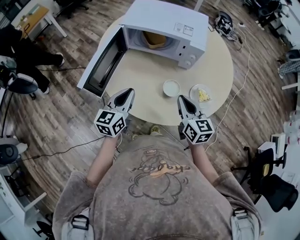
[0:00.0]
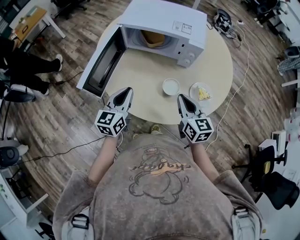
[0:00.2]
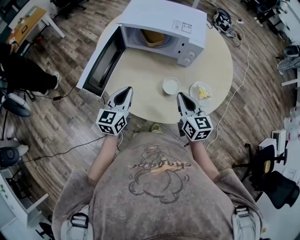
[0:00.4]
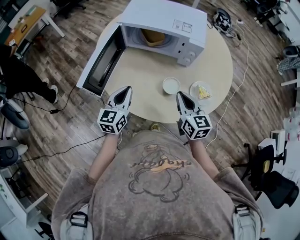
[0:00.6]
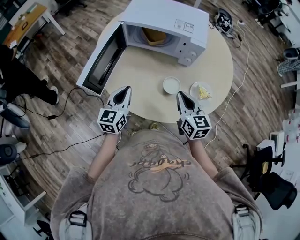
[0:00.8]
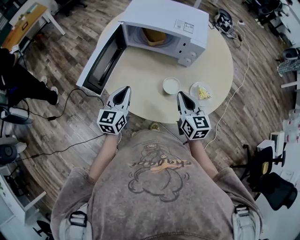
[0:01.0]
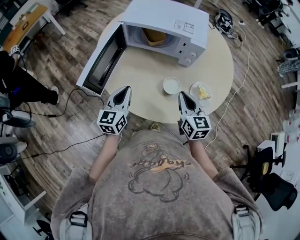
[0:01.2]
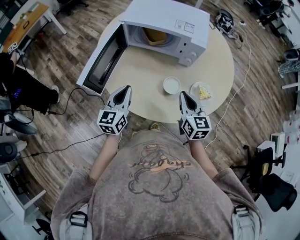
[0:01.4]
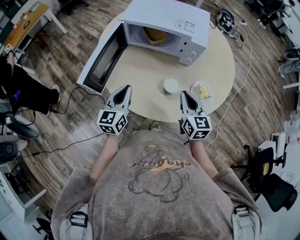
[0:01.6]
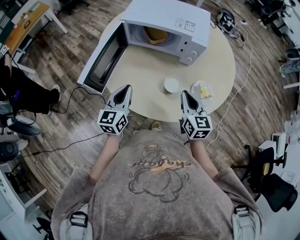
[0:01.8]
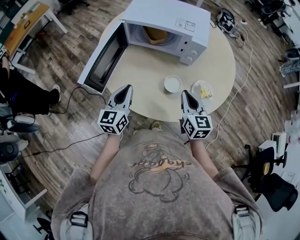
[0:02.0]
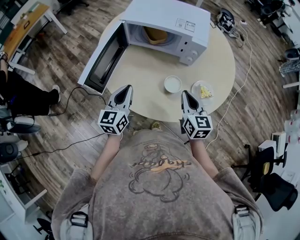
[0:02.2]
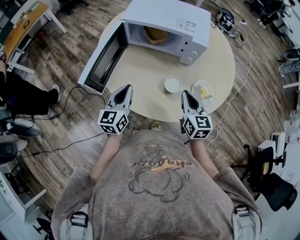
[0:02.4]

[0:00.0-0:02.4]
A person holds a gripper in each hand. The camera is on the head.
0:00.0 to 0:01.2: The grippers make only small movements.
0:01.2 to 0:02.4: The two grippers keep their place.

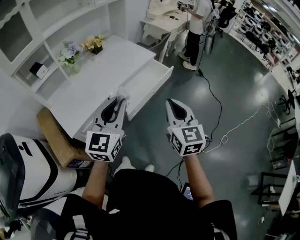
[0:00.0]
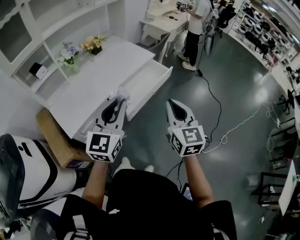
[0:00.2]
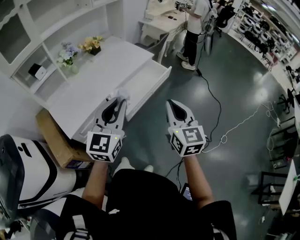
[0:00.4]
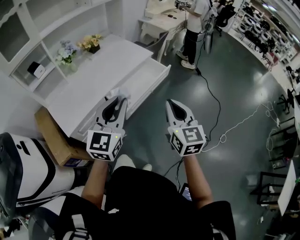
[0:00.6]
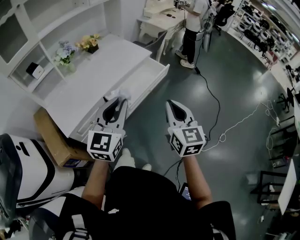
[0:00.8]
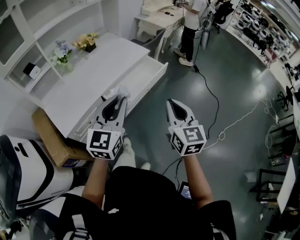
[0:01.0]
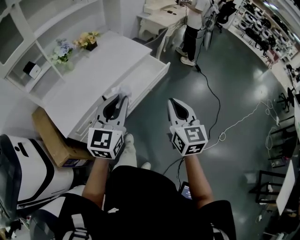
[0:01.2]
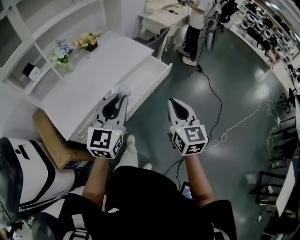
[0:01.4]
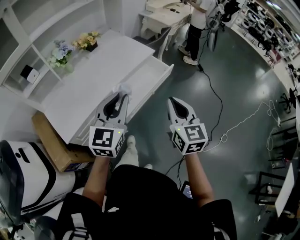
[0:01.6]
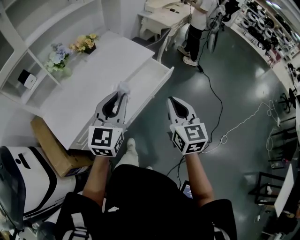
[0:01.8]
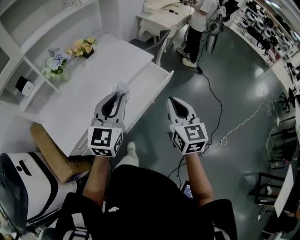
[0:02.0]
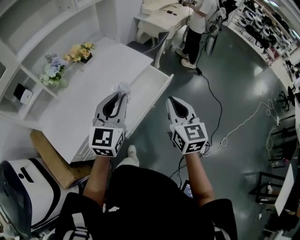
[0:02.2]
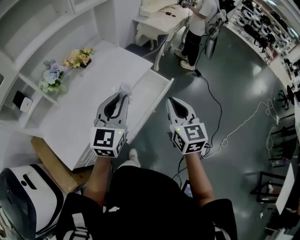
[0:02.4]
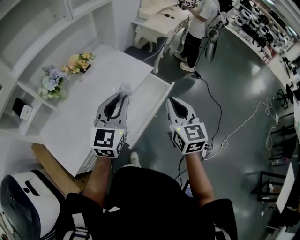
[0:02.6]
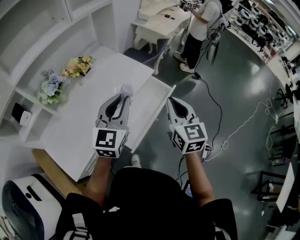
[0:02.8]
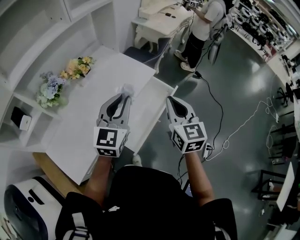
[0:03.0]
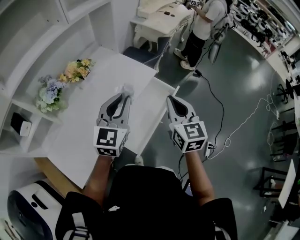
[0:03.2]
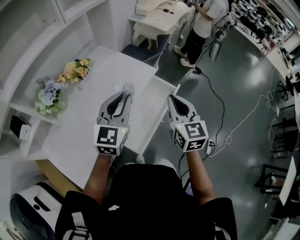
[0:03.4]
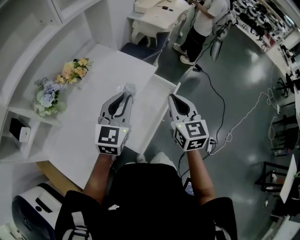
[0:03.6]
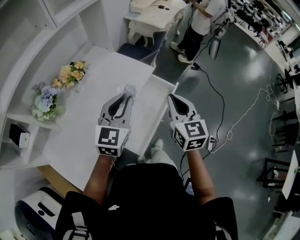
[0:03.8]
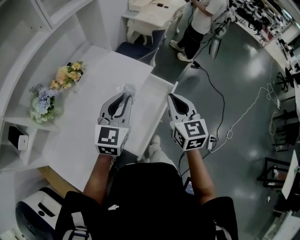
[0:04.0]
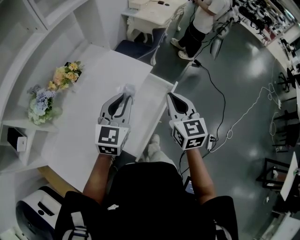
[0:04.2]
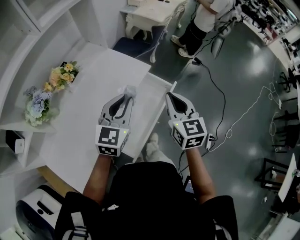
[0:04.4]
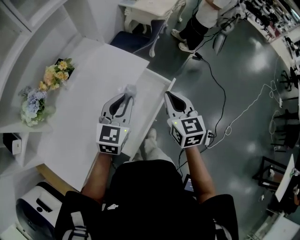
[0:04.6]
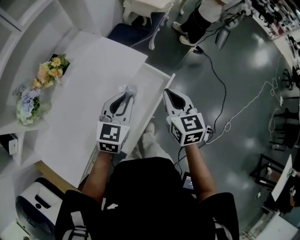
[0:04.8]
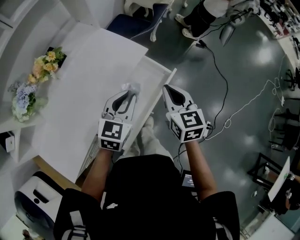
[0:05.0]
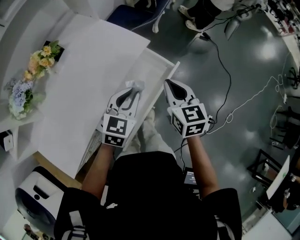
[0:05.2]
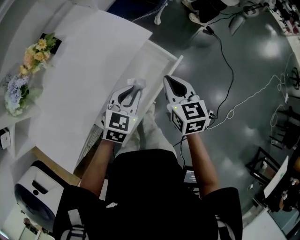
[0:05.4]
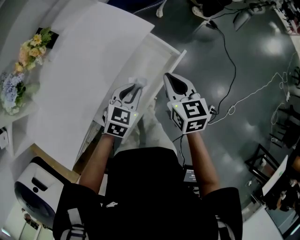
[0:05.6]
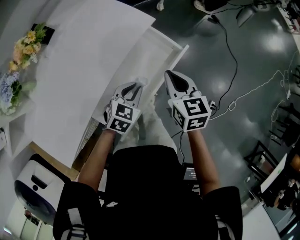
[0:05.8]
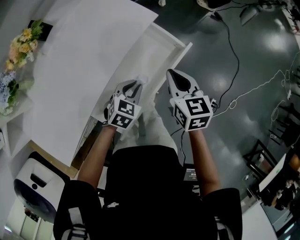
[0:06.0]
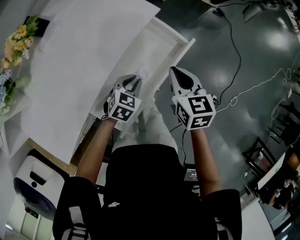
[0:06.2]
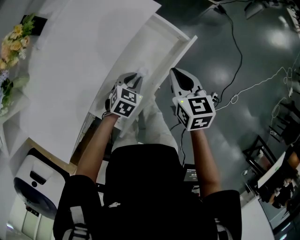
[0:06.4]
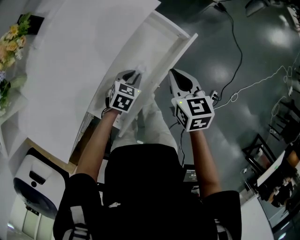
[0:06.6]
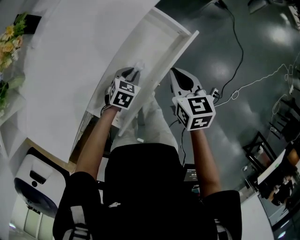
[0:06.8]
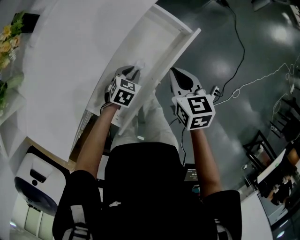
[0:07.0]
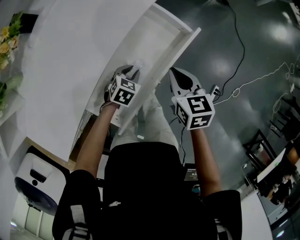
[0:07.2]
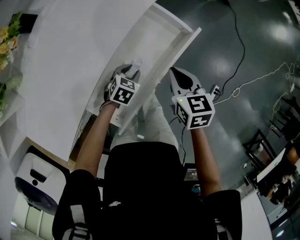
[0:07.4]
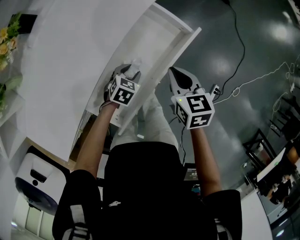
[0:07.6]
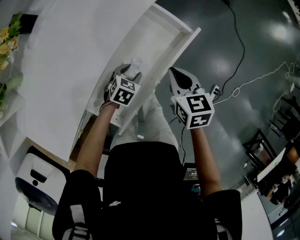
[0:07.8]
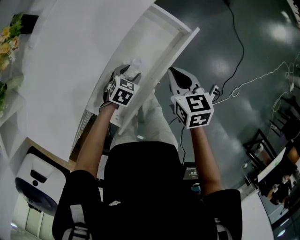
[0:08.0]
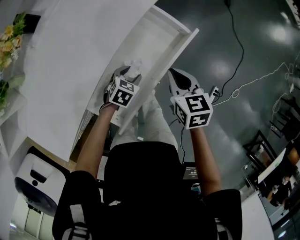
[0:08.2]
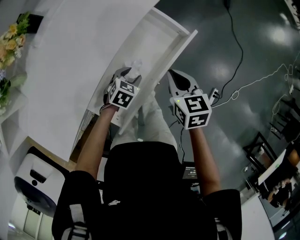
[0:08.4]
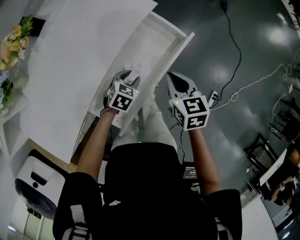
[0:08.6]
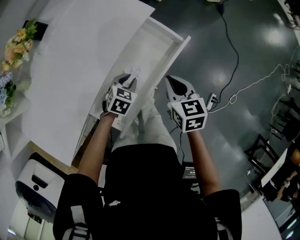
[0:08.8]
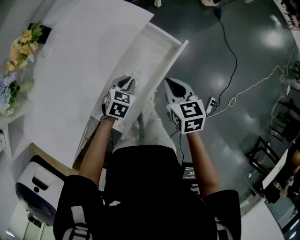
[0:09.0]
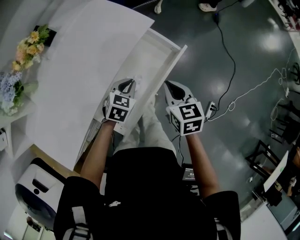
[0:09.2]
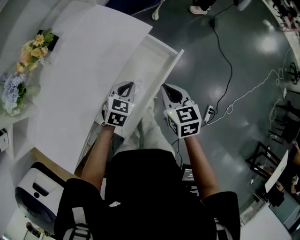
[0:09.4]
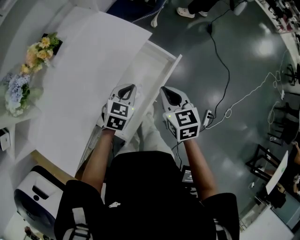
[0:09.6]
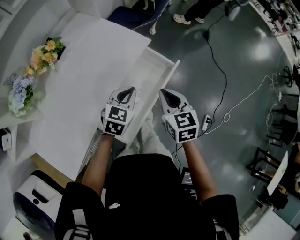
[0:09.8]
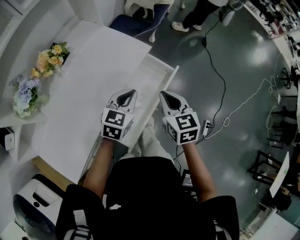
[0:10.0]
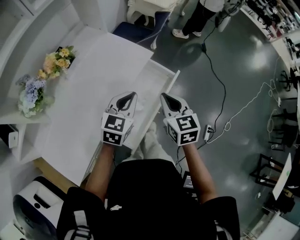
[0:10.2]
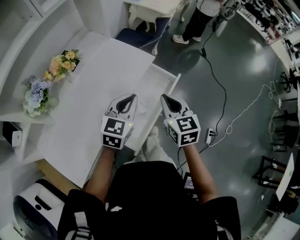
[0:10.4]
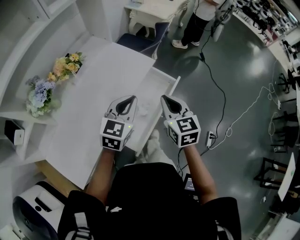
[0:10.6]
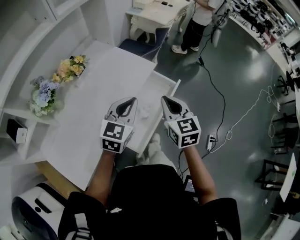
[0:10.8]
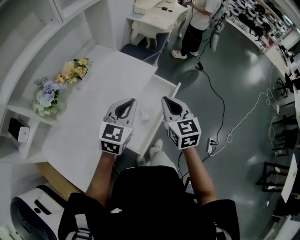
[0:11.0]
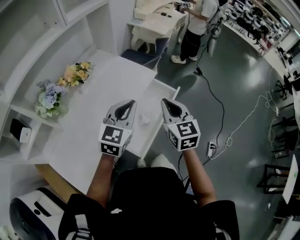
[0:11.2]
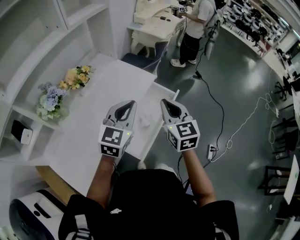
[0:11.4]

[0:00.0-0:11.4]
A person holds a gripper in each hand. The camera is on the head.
0:00.0 to 0:01.4: The left gripper is displaced forward by roughly 5 cm; the right gripper shifts by about 5 cm.
0:01.4 to 0:02.8: Both grippers move forward, approximately 25 cm.
0:02.8 to 0:04.2: The grippers both shift forward and downward by about 15 cm.
0:04.2 to 0:05.6: The right gripper shifts approximately 20 cm downward and forward, and turns by about 20 degrees. The left gripper heads downward, covering some 25 cm, and turns by about 30 degrees.
0:05.6 to 0:07.2: The left gripper travels downward by approximately 20 cm, and rotates some 20 degrees. The right gripper goes some 10 cm downward.
0:07.2 to 0:08.6: The grippers stay close to where they were, moving slightly.
0:08.6 to 0:10.0: The left gripper is displaced upward by some 25 cm, rotates about 30 degrees, and closes. Meanwhile the right gripper heads upward, covering about 15 cm.
0:10.0 to 0:11.4: Both grippers travel together upward and backward, approximately 15 cm. The left gripper turns by some 20 degrees.

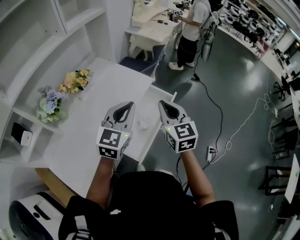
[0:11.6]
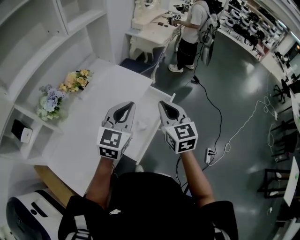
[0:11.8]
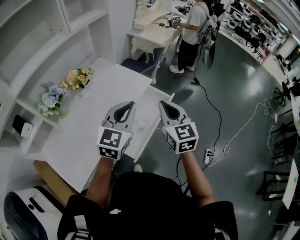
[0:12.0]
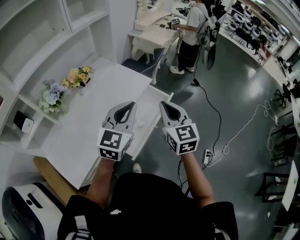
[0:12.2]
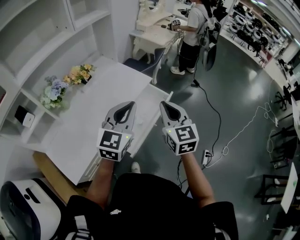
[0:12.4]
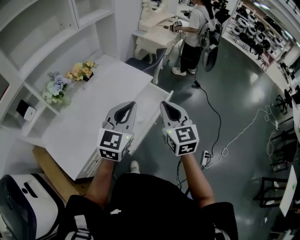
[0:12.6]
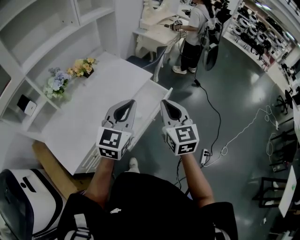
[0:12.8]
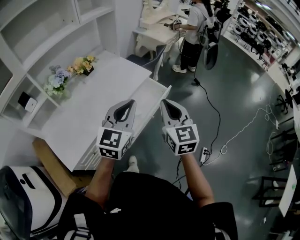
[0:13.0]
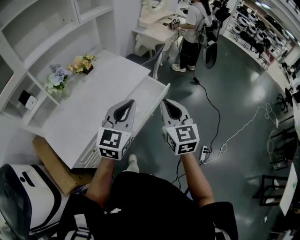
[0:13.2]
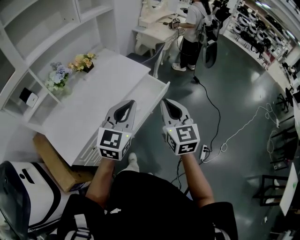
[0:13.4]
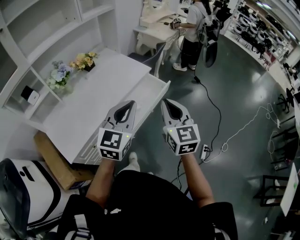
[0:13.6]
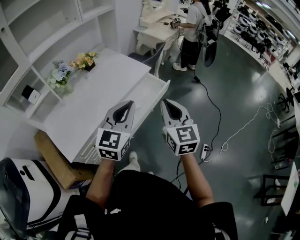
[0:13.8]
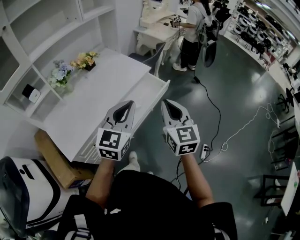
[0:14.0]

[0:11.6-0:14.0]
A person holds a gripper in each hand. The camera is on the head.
0:11.6 to 0:12.8: The right gripper shifts approximately 15 cm backward, to the right and upward. The left gripper heads backward and to the right, covering approximately 15 cm.
0:12.8 to 0:14.0: Both grippers move backward, roughly 10 cm.

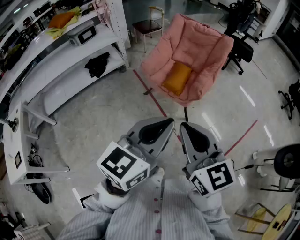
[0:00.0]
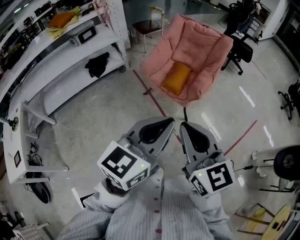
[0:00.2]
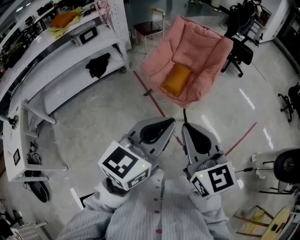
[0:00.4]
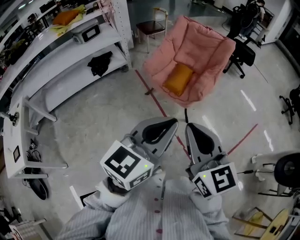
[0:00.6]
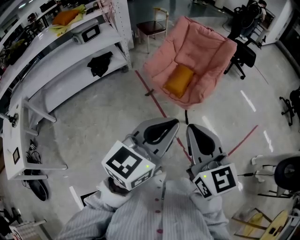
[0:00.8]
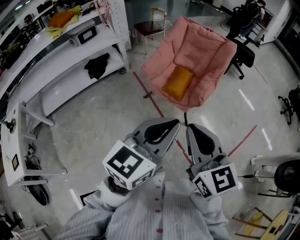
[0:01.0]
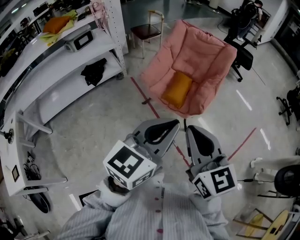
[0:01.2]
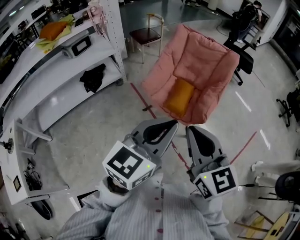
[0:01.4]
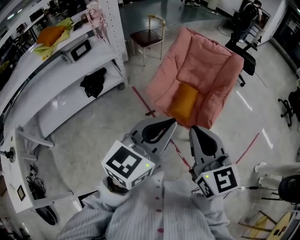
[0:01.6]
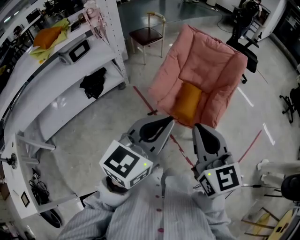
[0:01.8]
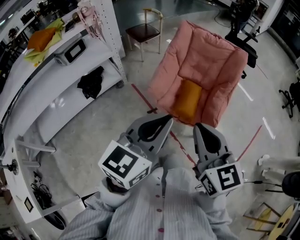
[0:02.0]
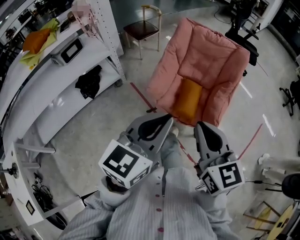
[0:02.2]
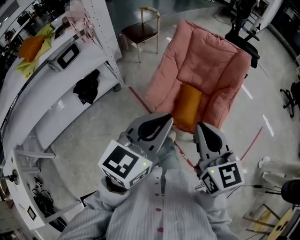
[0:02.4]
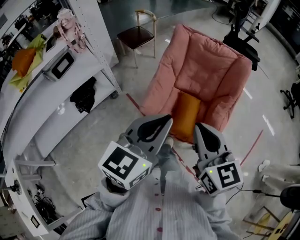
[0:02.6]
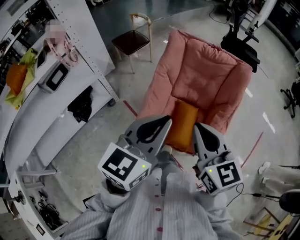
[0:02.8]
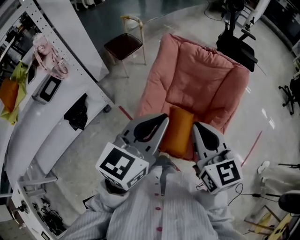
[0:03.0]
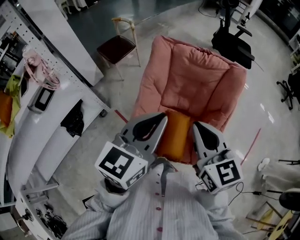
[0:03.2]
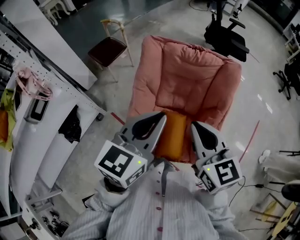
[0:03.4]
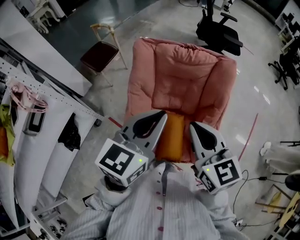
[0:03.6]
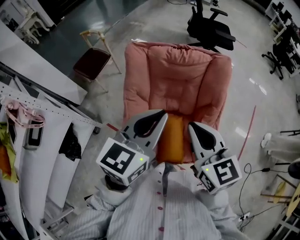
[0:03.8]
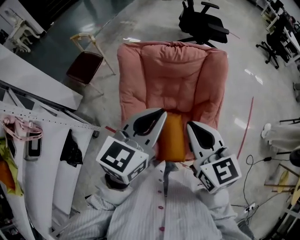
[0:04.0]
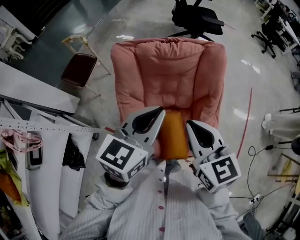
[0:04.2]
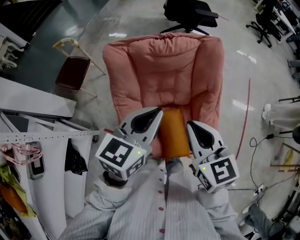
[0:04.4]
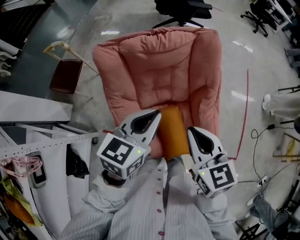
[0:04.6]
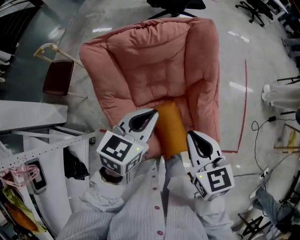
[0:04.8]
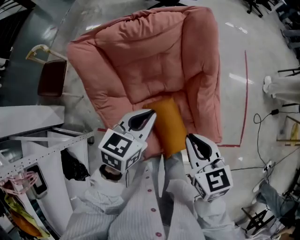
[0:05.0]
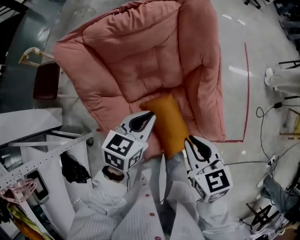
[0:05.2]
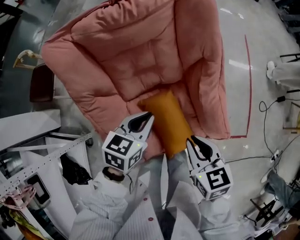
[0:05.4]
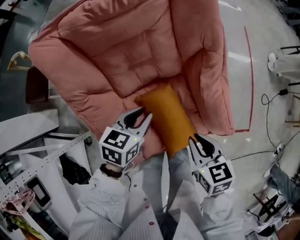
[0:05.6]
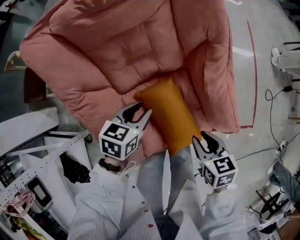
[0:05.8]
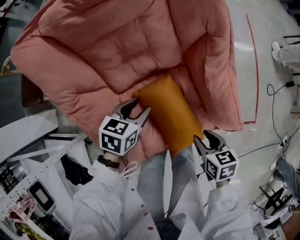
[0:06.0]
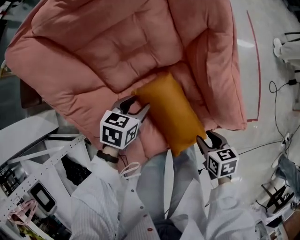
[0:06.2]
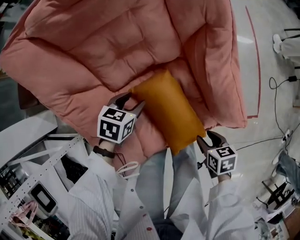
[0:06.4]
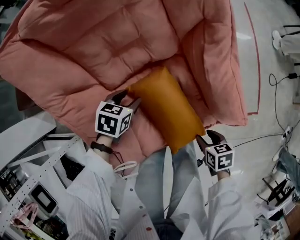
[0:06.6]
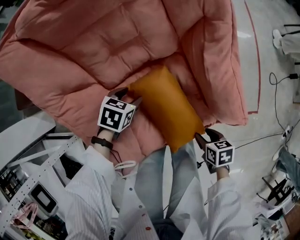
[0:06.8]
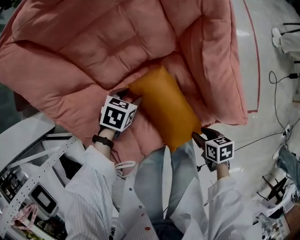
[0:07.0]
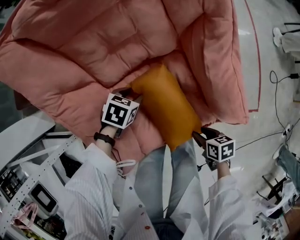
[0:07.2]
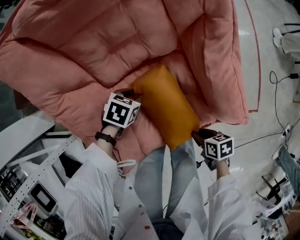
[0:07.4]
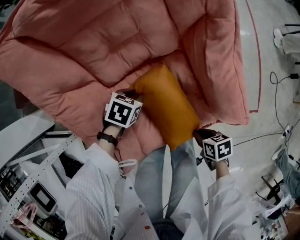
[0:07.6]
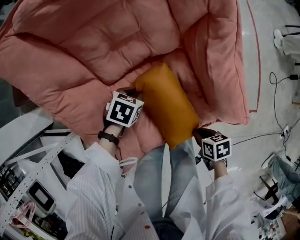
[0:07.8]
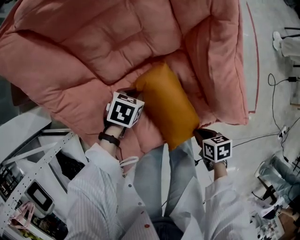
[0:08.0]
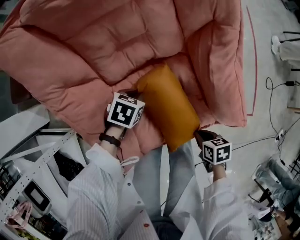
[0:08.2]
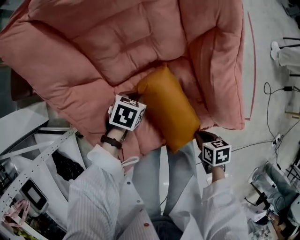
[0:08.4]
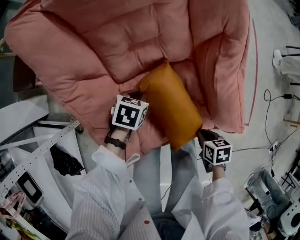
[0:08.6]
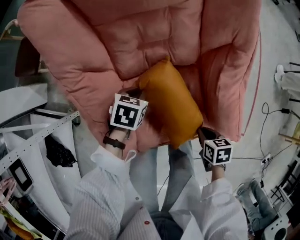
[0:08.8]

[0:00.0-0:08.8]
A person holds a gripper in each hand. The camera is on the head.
0:00.0 to 0:01.4: The grippers both shift forward by about 15 cm.
0:01.4 to 0:03.0: Both grippers are carried forward, roughly 40 cm.
0:03.0 to 0:04.4: The right gripper ends up approximately 15 cm from where it was, and rotates roughly 30 degrees. Meanwhile the left gripper changes place by approximately 20 cm, and changes its angle by about 30 degrees.
0:04.4 to 0:05.8: The two grippers go some 35 cm downward. The right gripper rotates approximately 40 degrees. Meanwhile the left gripper rotates about 30 degrees, and opens its fingers.
0:05.8 to 0:07.4: Both grippers travel together downward, about 15 cm. The left gripper swivels approximately 30 degrees, and opens and closes again; the right gripper turns by roughly 30 degrees.
0:07.4 to 0:08.8: The left gripper travels upward by approximately 5 cm, swivels approximately 20 degrees, and closes its fingers; the right gripper changes place by about 10 cm.
